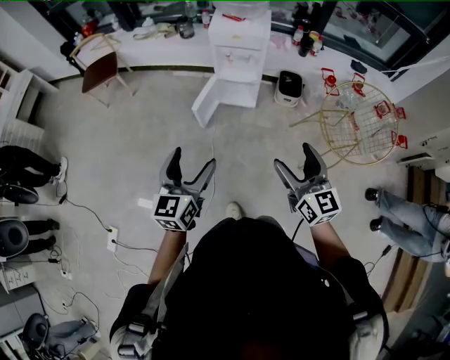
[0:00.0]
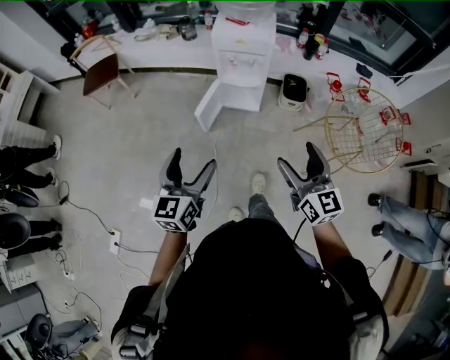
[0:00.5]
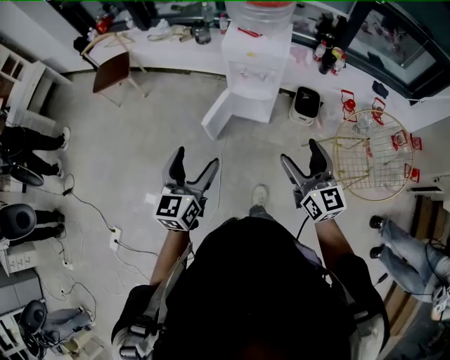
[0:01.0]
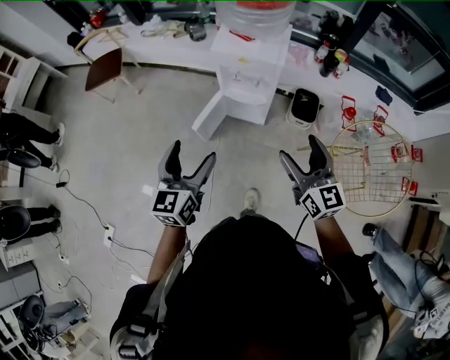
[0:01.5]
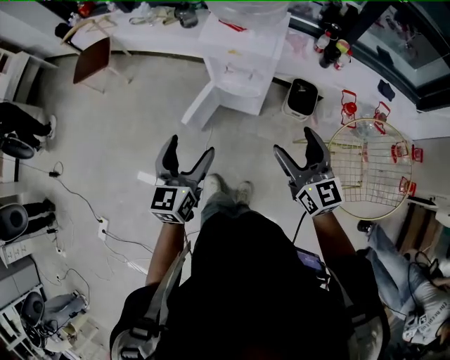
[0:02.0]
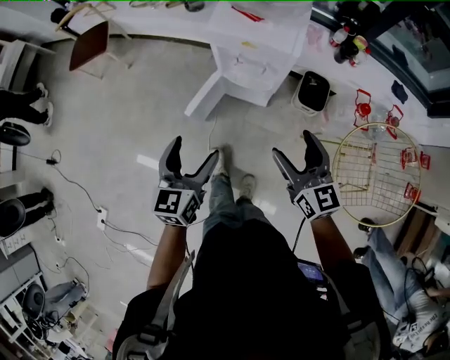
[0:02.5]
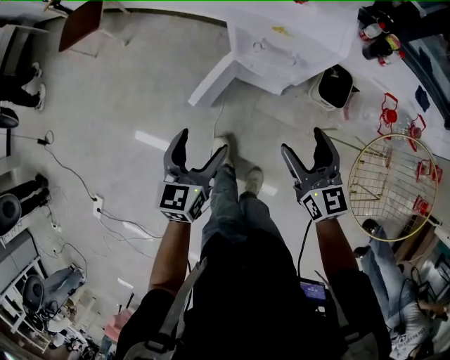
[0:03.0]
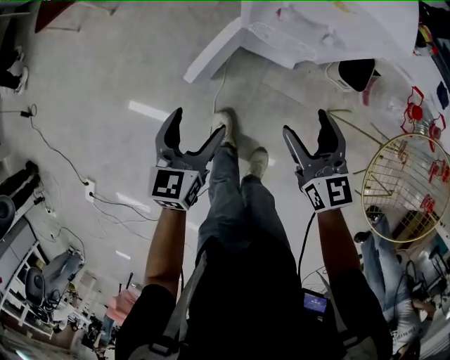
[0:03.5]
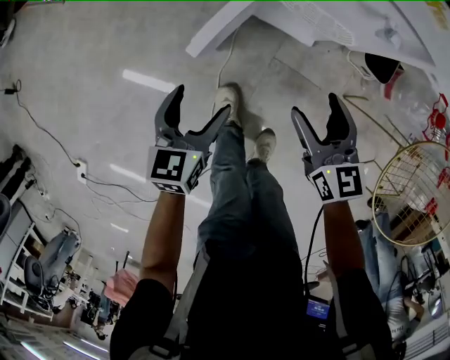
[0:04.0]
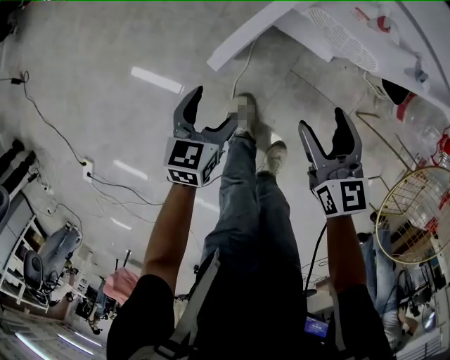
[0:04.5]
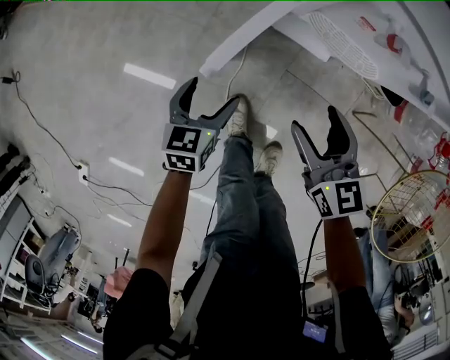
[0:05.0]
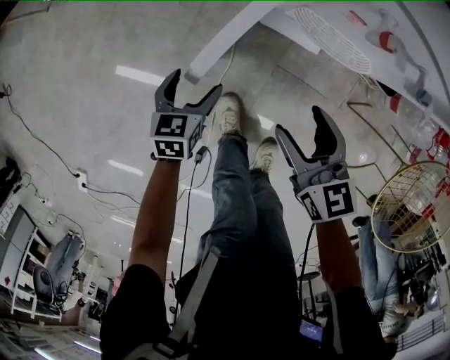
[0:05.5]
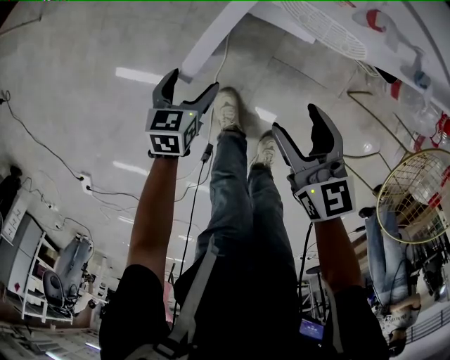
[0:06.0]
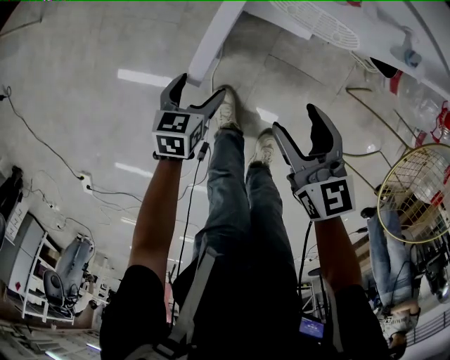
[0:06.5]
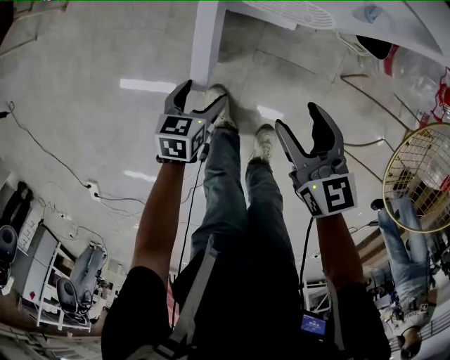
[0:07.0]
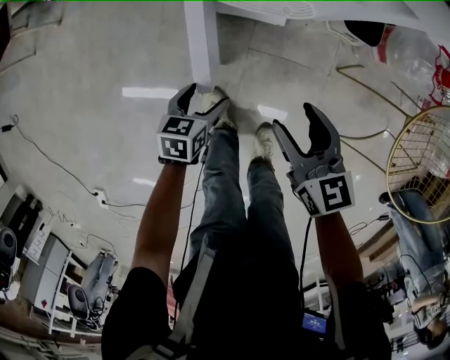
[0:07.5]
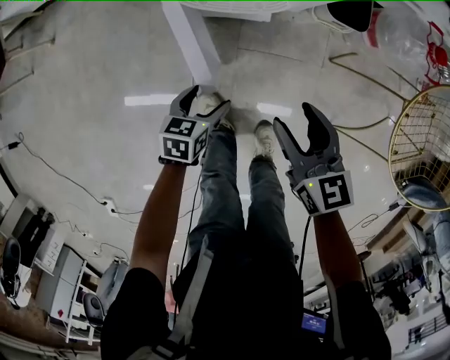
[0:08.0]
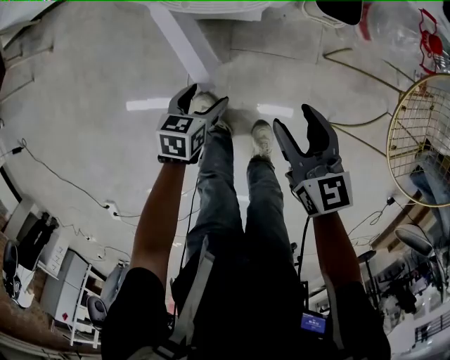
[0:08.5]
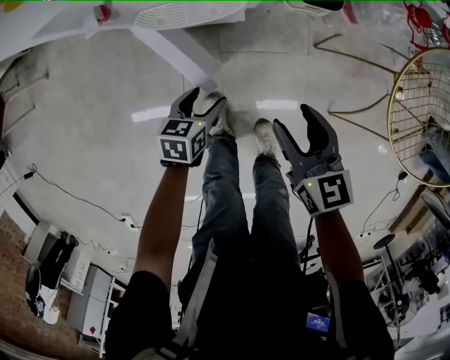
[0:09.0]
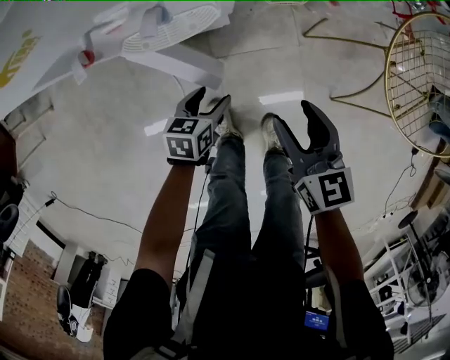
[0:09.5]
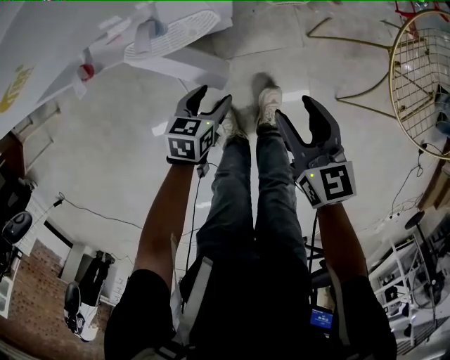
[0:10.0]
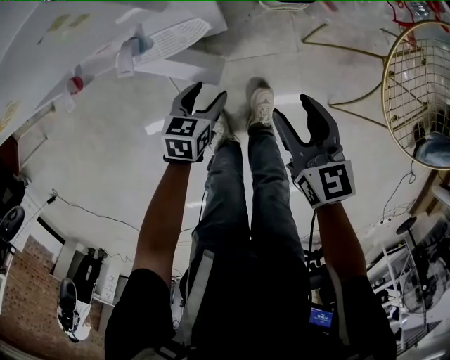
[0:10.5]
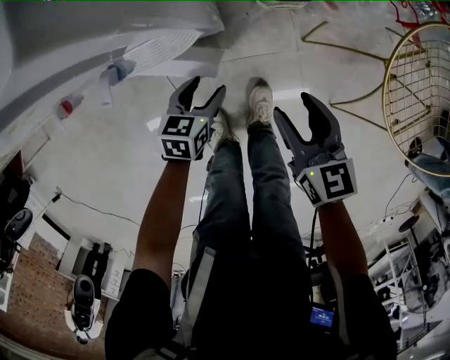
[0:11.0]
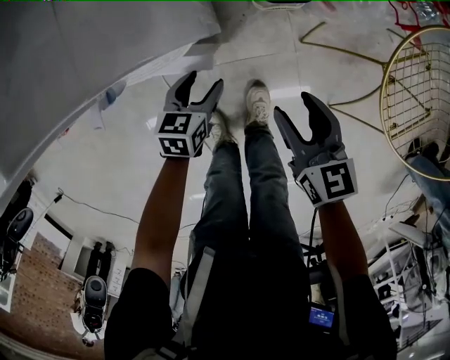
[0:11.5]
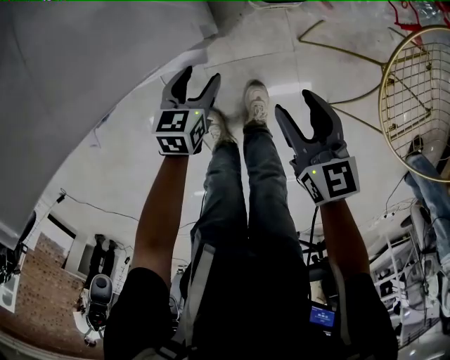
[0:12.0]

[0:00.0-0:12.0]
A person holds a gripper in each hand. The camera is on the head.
0:00.0 to 0:02.0: The two grippers go roughly 25 cm forward.
0:02.0 to 0:04.0: The left gripper heads downward, covering roughly 25 cm; the right gripper is displaced downward and to the left by some 25 cm.
0:04.0 to 0:06.0: The right gripper moves downward, some 5 cm; the left gripper is displaced downward and forward by some 20 cm.
0:06.0 to 0:08.0: Both grippers move to the right, some 15 cm. The left gripper rotates approximately 20 degrees.
0:08.0 to 0:10.0: The right gripper moves to the right, approximately 10 cm, while the left gripper moves forward and to the right, about 10 cm.
0:10.0 to 0:12.0: The left gripper shifts roughly 15 cm forward; the right gripper is displaced forward and to the right by approximately 10 cm.

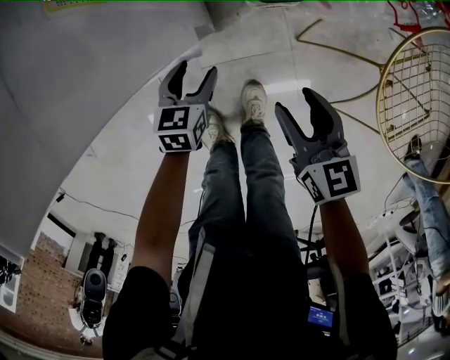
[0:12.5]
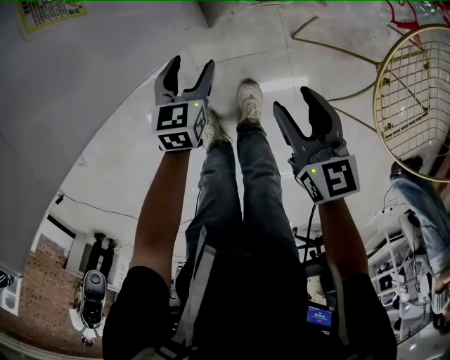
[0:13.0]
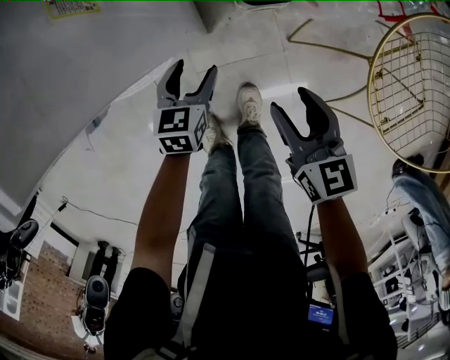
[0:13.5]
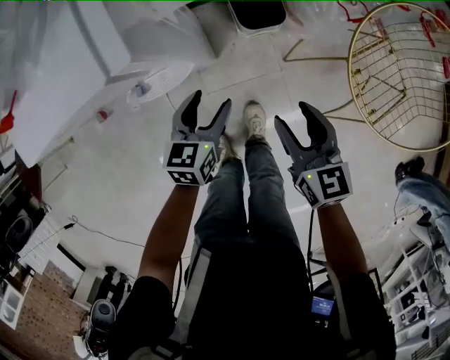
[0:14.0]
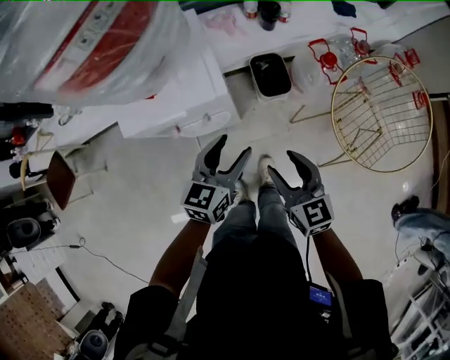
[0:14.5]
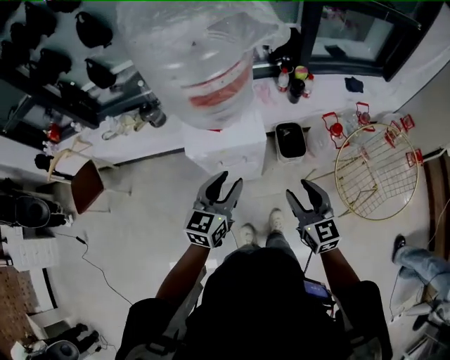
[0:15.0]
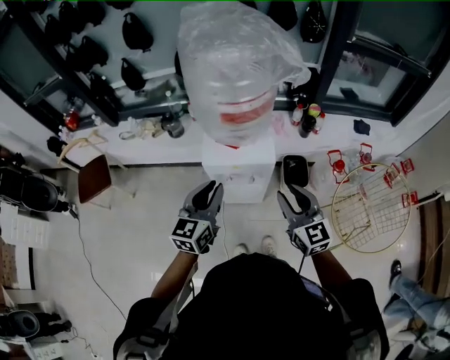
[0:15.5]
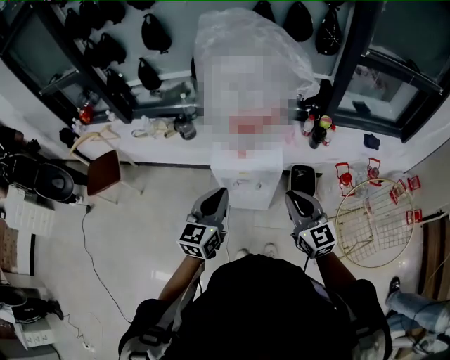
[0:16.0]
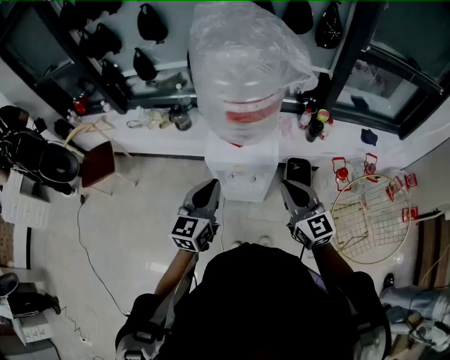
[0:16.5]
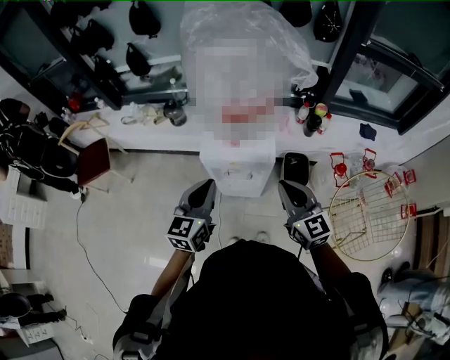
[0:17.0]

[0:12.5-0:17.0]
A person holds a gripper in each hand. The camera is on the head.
0:12.5 to 0:14.5: Both grippers travel together upward, roughly 35 cm. The left gripper turns by roughly 30 degrees.
0:14.5 to 0:17.0: The left gripper heads upward and to the left, covering roughly 30 cm, turns by roughly 30 degrees, and closes. Meanwhile the right gripper travels upward by approximately 25 cm, turns by approximately 30 degrees, and closes.

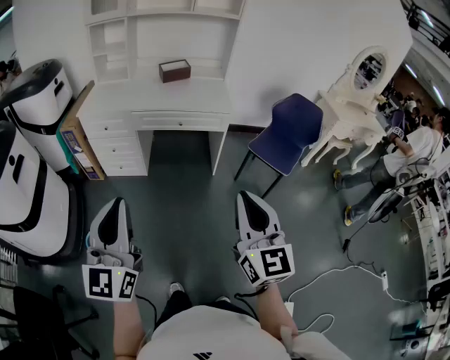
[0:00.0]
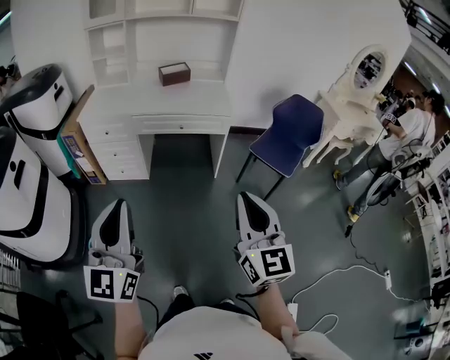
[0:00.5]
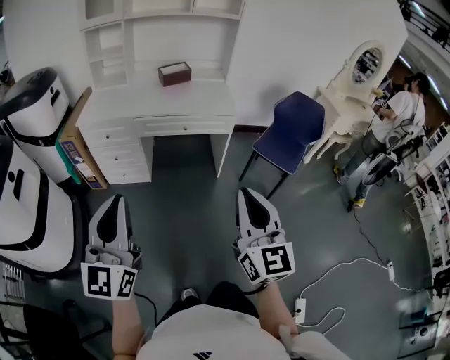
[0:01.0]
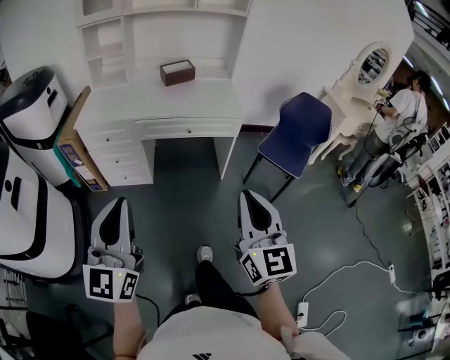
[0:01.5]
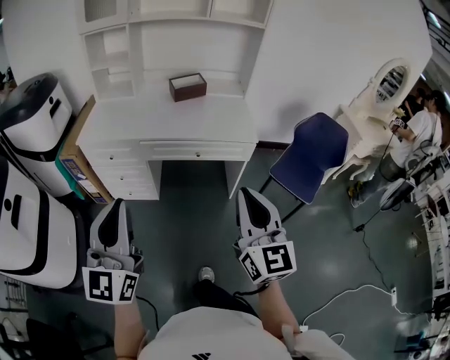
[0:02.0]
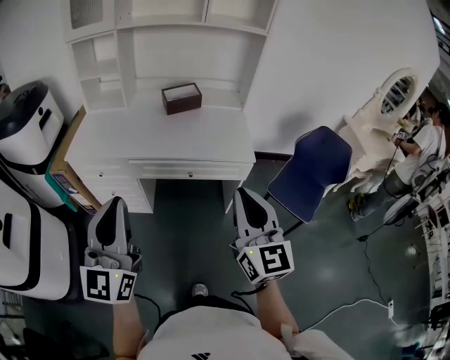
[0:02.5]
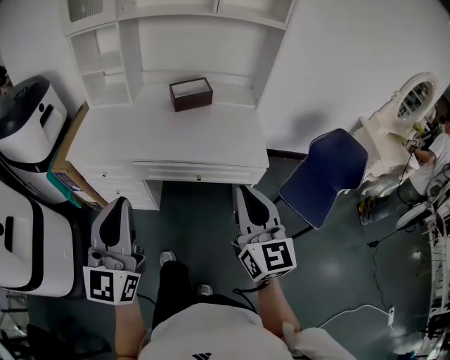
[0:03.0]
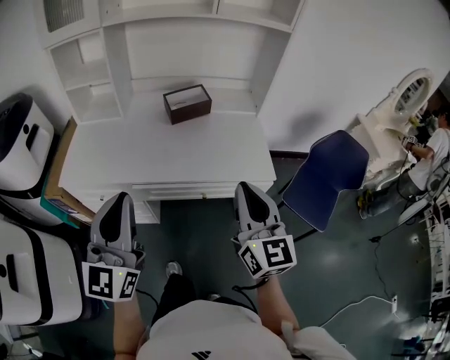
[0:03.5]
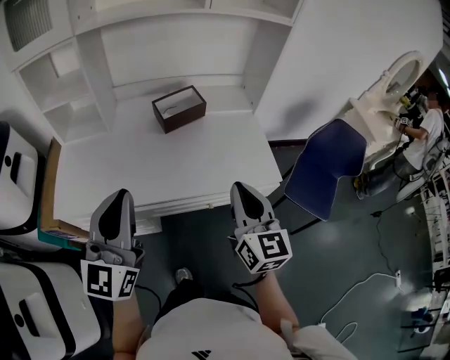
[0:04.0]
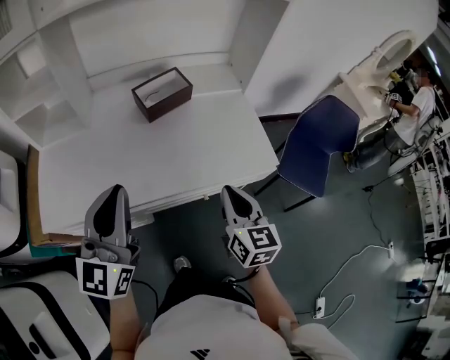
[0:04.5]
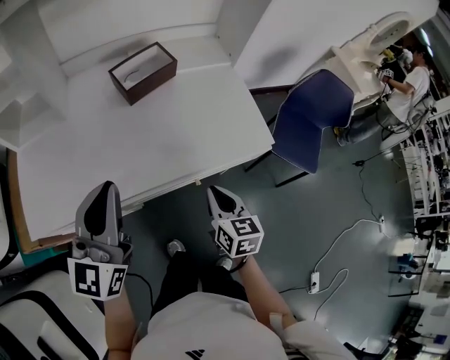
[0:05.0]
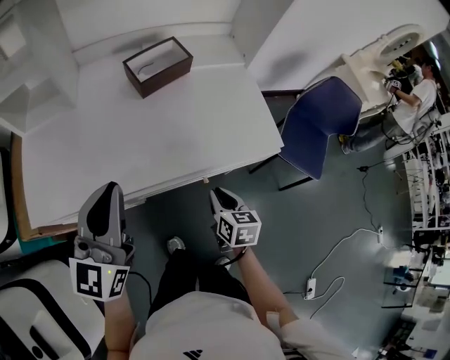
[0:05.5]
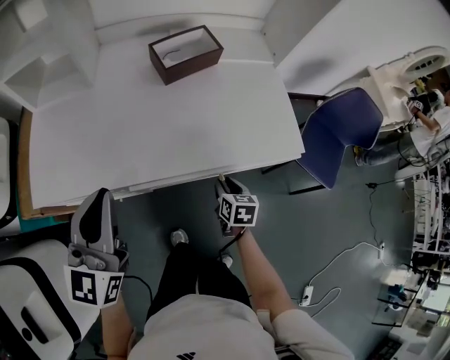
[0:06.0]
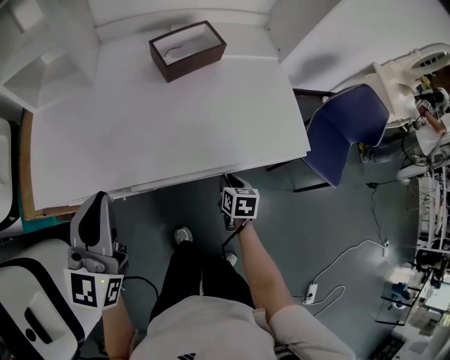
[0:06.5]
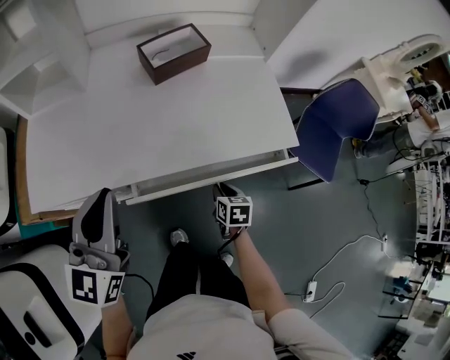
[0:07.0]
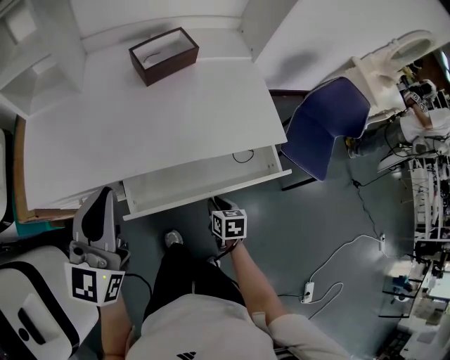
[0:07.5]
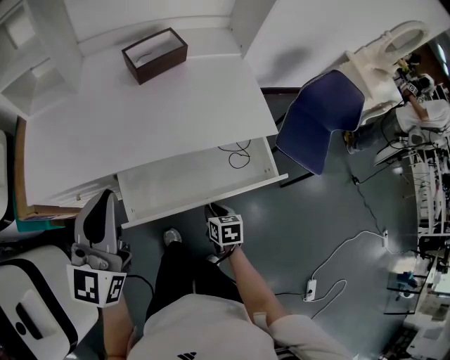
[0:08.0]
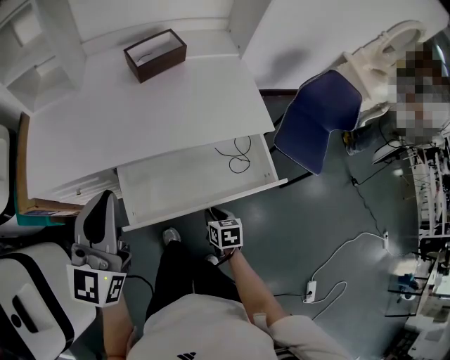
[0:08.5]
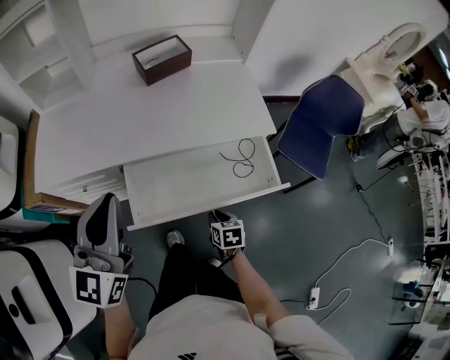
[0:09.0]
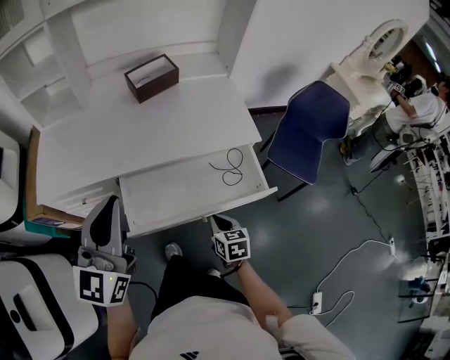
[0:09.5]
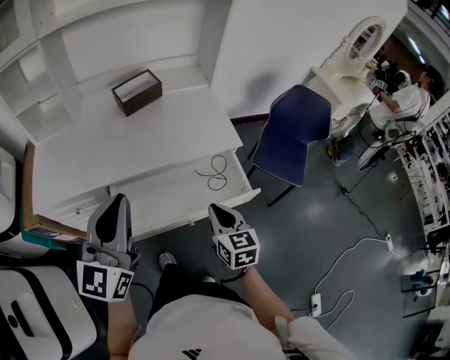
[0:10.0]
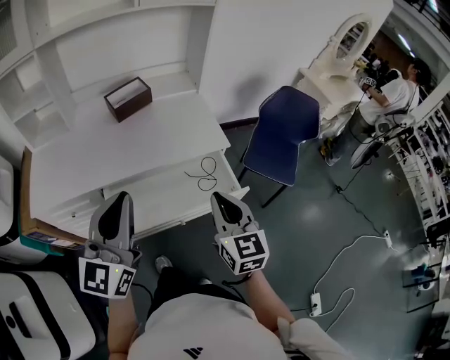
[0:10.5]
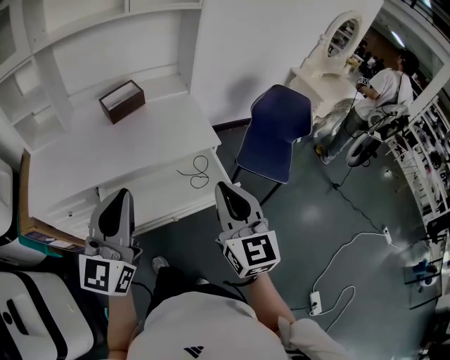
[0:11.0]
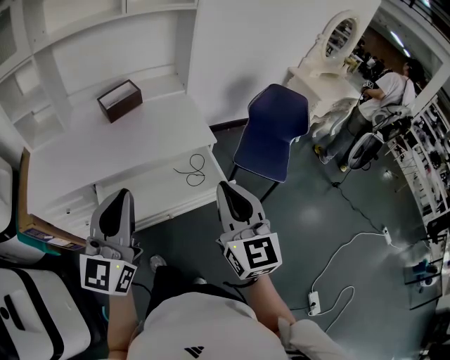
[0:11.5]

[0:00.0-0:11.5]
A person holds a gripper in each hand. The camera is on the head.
0:00.0 to 0:02.0: Both grippers travel together forward, roughly 25 cm.
0:02.0 to 0:04.0: The grippers both shift forward by some 40 cm.
0:04.0 to 0:06.0: The right gripper heads downward, covering some 35 cm, tilts its fingers roughly 40 degrees downward, and opens up. The left gripper heads downward and to the left, covering approximately 15 cm.
0:06.0 to 0:07.5: The right gripper moves backward, approximately 10 cm, while the left gripper heads to the right, covering roughly 5 cm.
0:07.5 to 0:09.5: The left gripper shifts approximately 10 cm backward, to the right and upward. Meanwhile the right gripper shifts approximately 10 cm backward and upward.
0:09.5 to 0:11.5: The left gripper shifts approximately 15 cm to the right and backward. The right gripper moves upward, approximately 35 cm, and tilts its fingers approximately 40 degrees upward.
